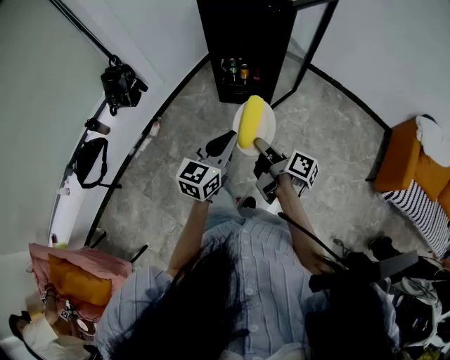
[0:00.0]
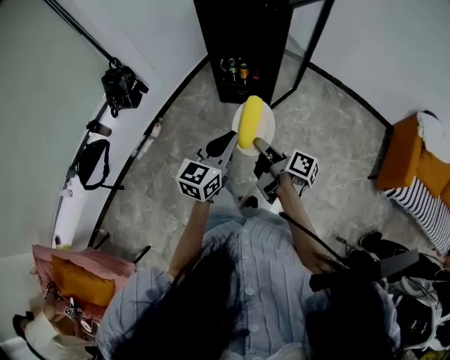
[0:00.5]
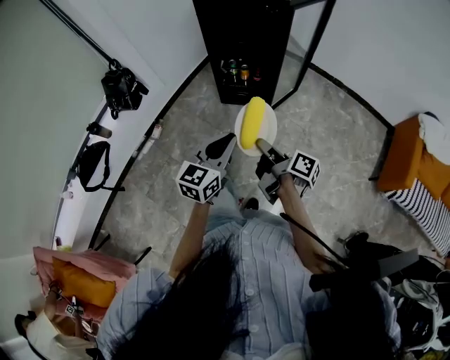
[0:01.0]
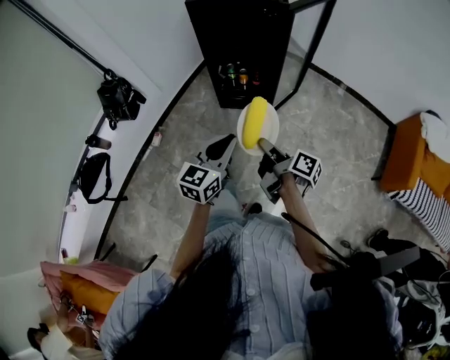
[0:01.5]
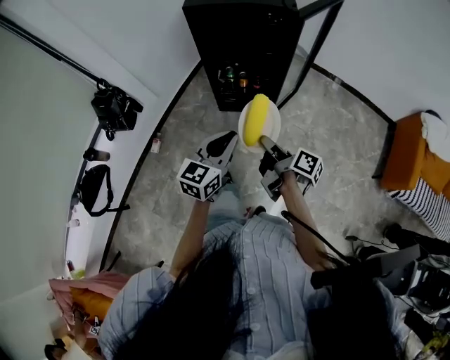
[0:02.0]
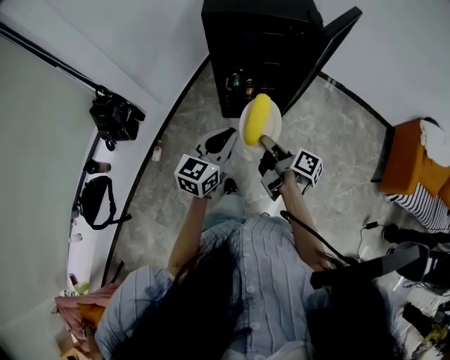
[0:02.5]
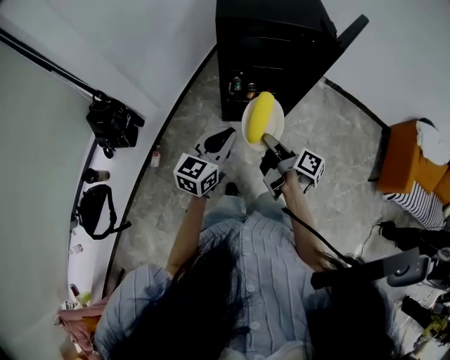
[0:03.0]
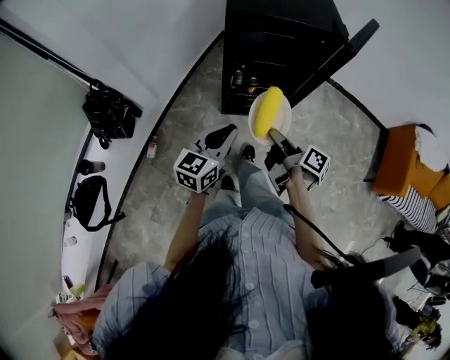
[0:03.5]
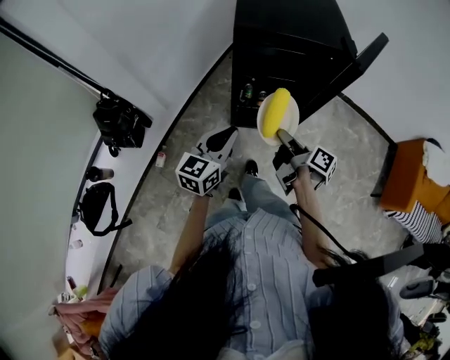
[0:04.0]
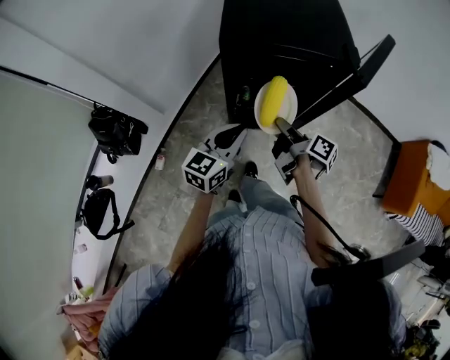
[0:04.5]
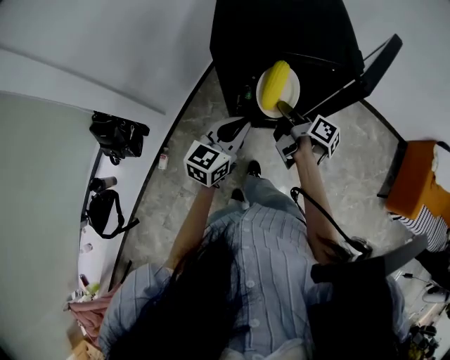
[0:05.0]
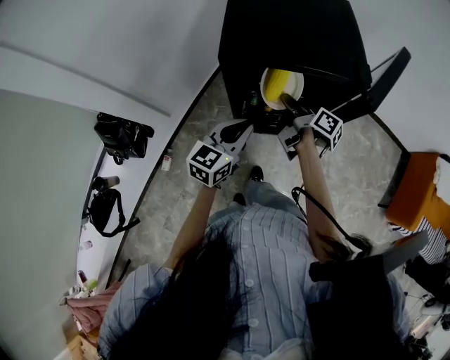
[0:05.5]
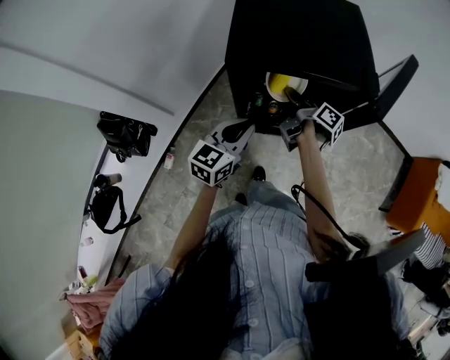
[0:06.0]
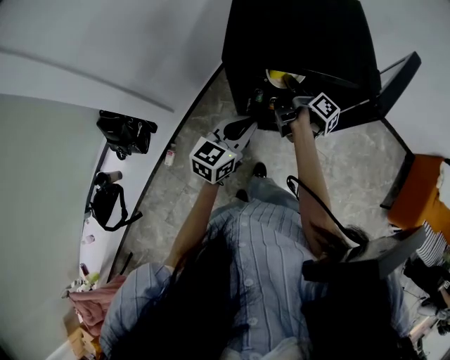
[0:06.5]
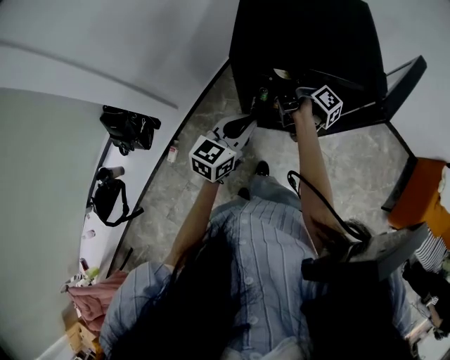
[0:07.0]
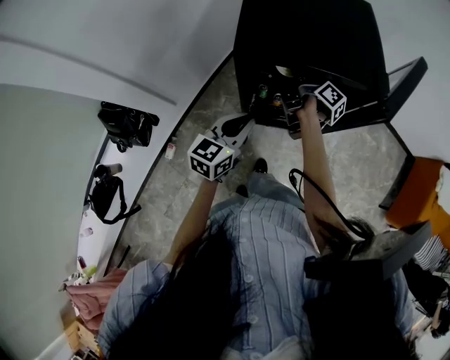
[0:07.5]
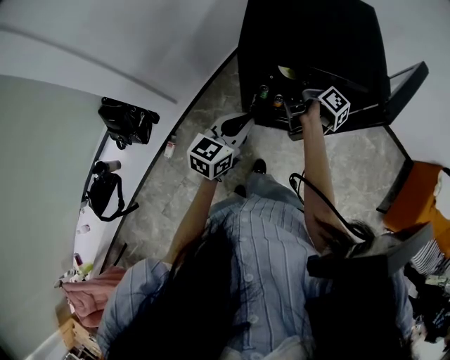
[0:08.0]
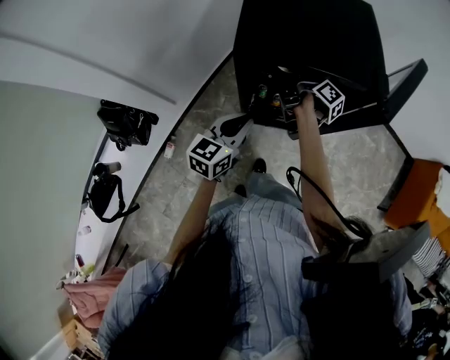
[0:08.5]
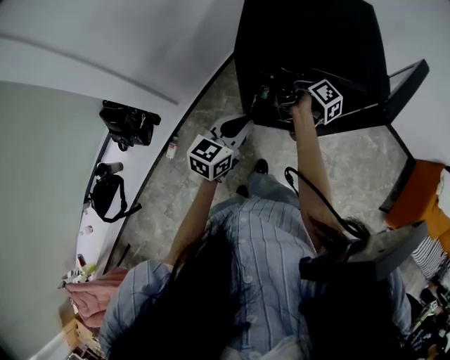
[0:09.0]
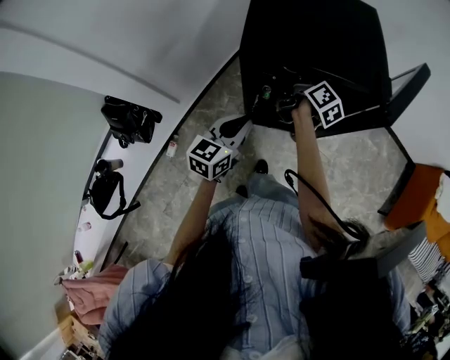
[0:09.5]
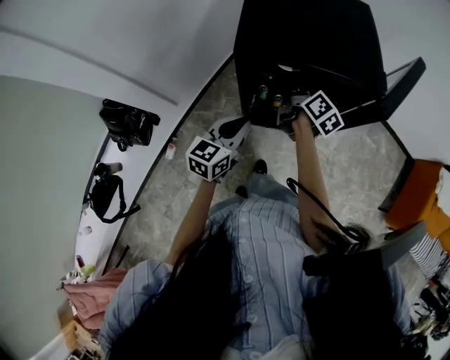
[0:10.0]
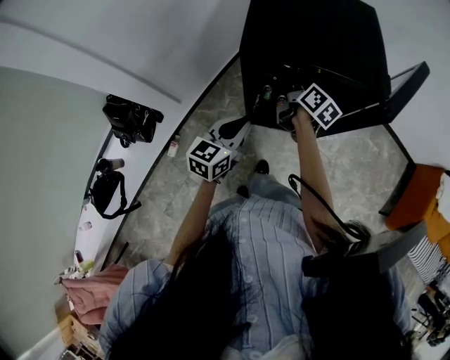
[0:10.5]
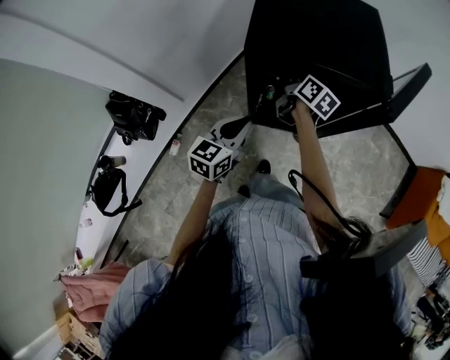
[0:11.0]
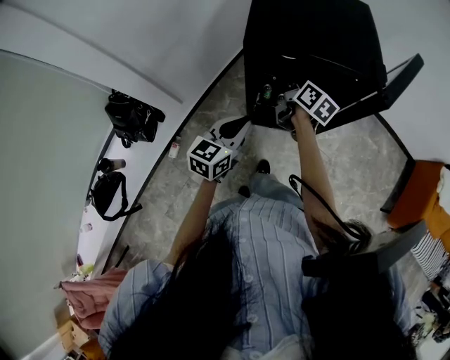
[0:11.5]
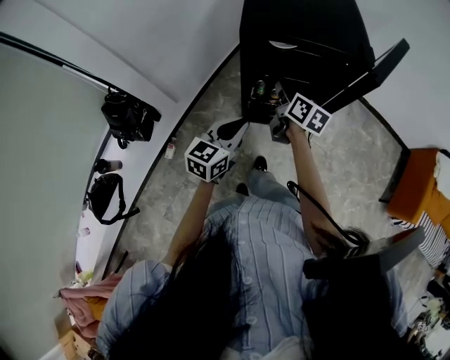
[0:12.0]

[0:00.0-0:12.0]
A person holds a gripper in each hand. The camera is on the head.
0:00.0 to 0:02.0: Both grippers travel together forward, about 15 cm.
0:02.0 to 0:04.0: The right gripper shifts about 20 cm forward and to the left. Meanwhile the left gripper moves to the left and forward, roughly 25 cm.
0:04.0 to 0:06.0: The right gripper moves forward, approximately 25 cm. Meanwhile the left gripper heads forward, covering some 15 cm.
0:06.0 to 0:08.0: The grippers move only a little.
0:08.0 to 0:10.0: The right gripper changes its angle by roughly 30 degrees, and opens, then closes again.
0:10.0 to 0:12.0: The grippers both shift backward by some 10 cm. The right gripper swivels some 20 degrees.

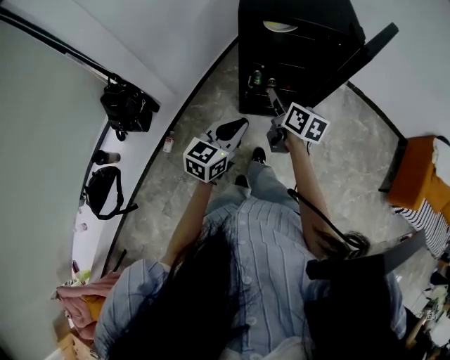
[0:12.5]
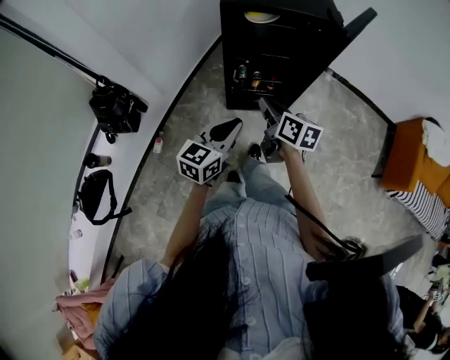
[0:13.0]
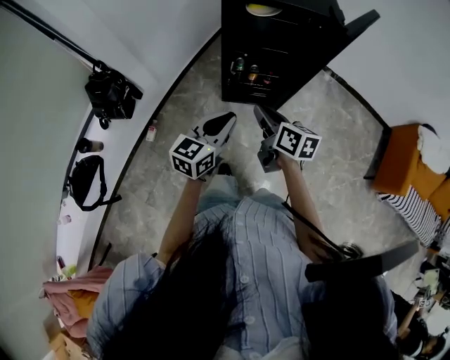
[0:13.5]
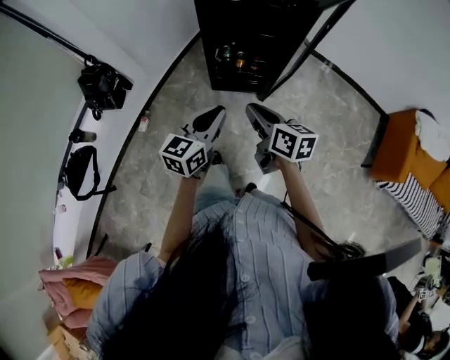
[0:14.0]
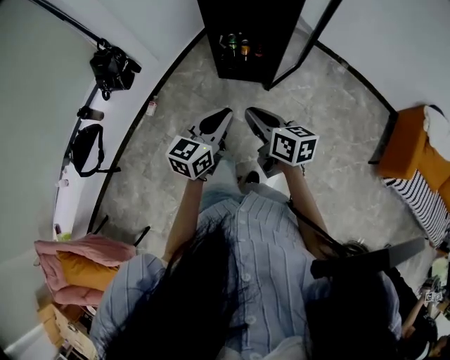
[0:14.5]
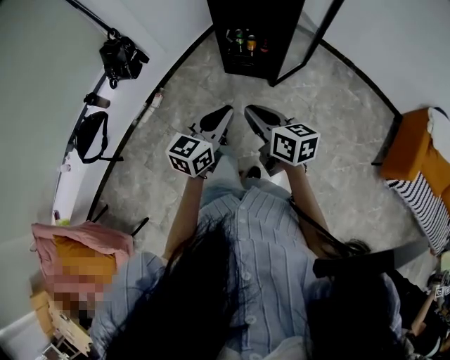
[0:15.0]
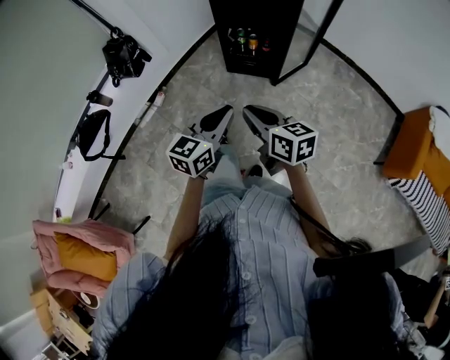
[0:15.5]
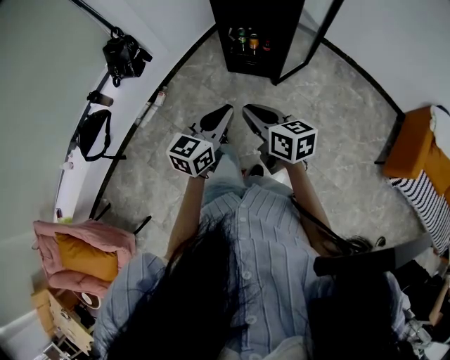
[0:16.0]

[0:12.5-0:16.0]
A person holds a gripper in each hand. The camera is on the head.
0:12.5 to 0:14.5: The two grippers go roughly 30 cm backward and to the right. The right gripper swivels some 20 degrees.
0:14.5 to 0:16.0: The two grippers go approximately 5 cm backward.

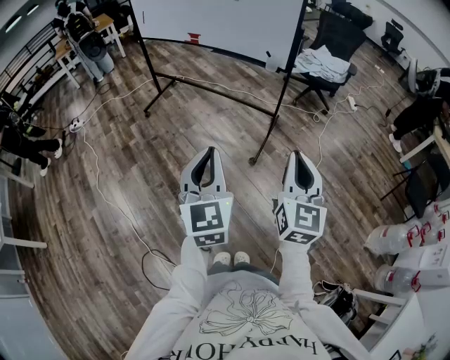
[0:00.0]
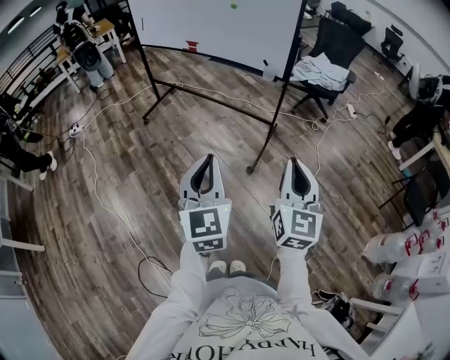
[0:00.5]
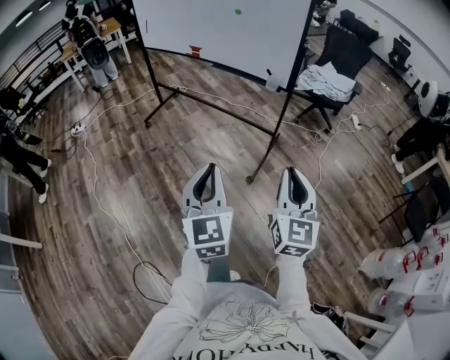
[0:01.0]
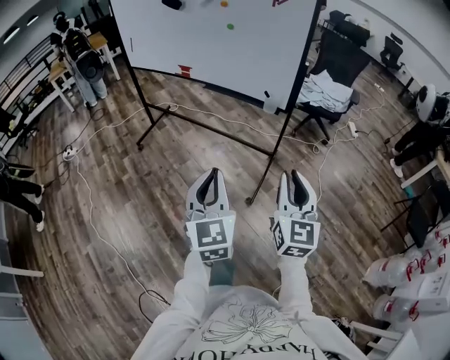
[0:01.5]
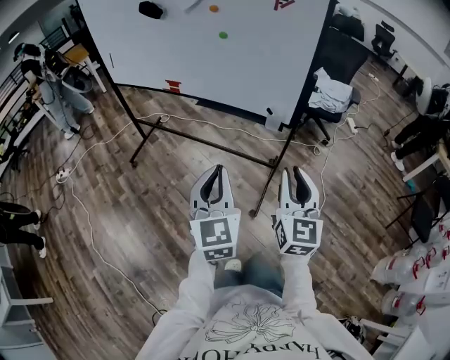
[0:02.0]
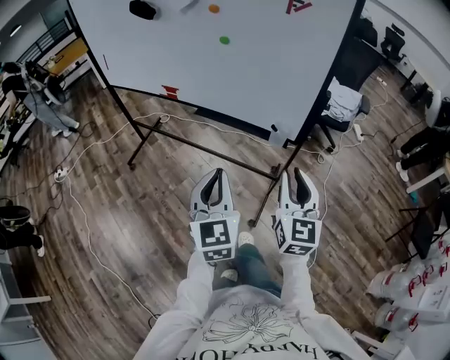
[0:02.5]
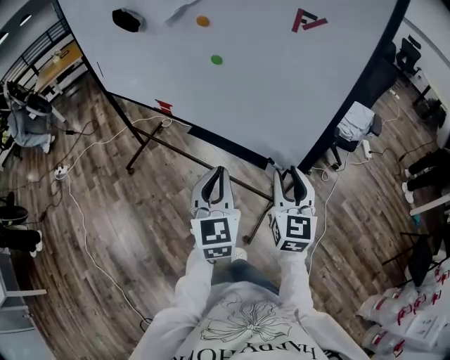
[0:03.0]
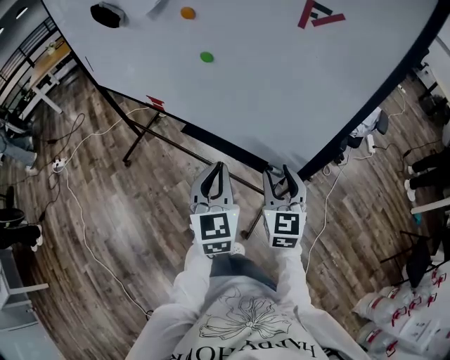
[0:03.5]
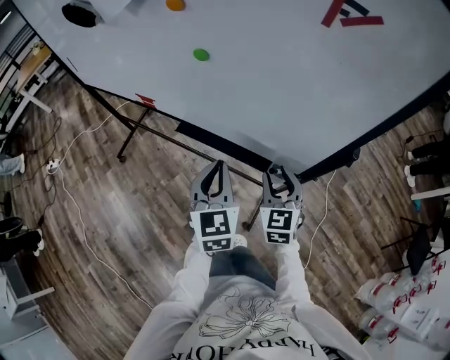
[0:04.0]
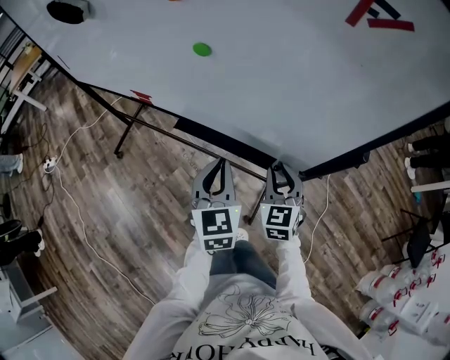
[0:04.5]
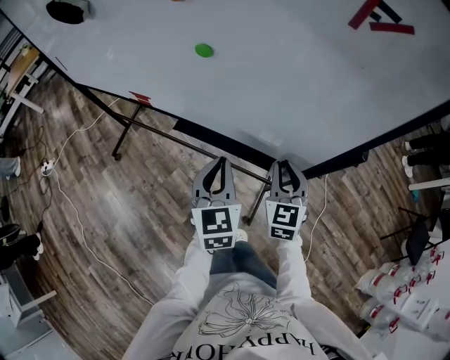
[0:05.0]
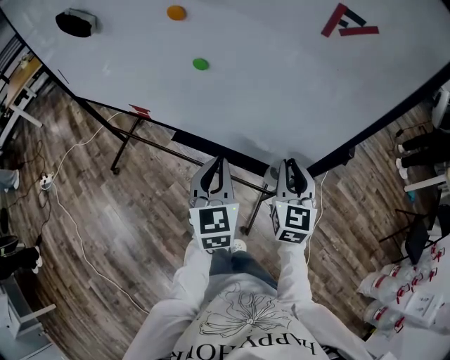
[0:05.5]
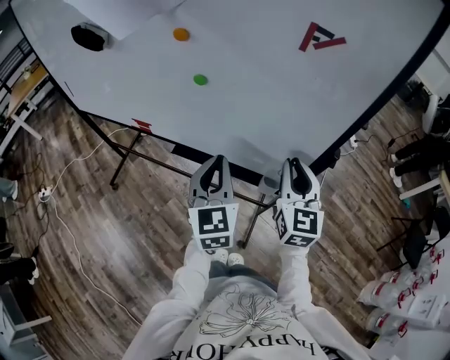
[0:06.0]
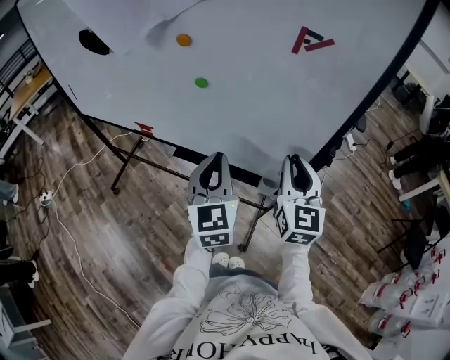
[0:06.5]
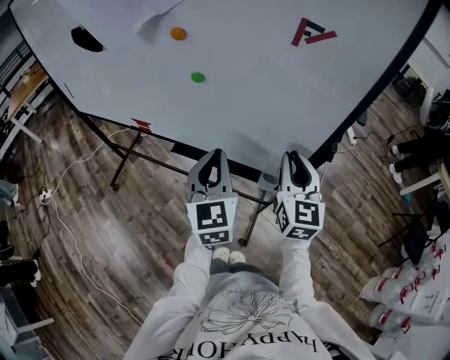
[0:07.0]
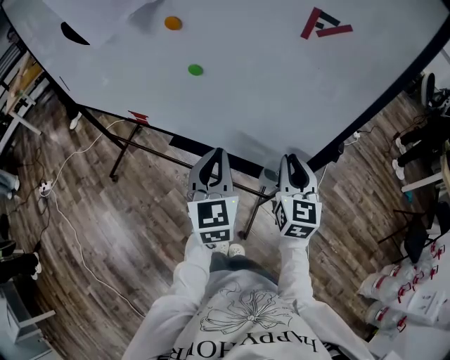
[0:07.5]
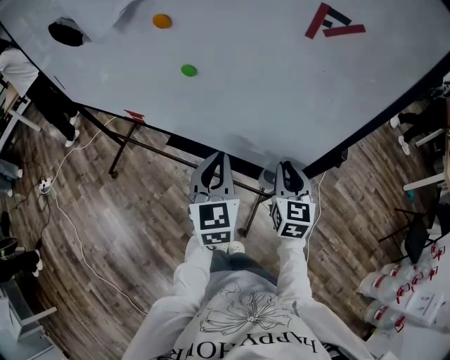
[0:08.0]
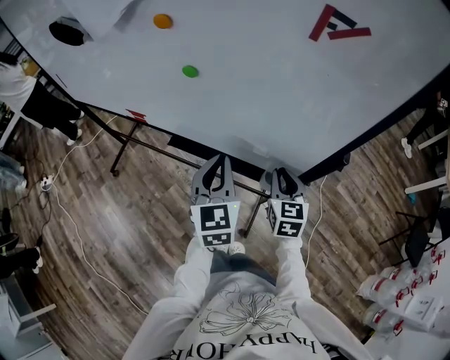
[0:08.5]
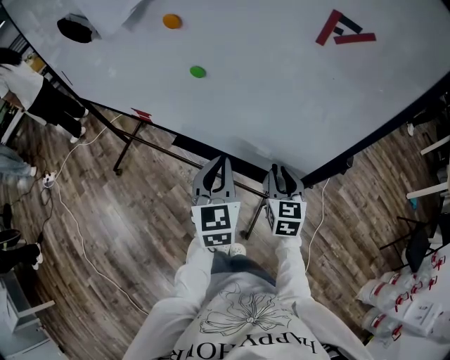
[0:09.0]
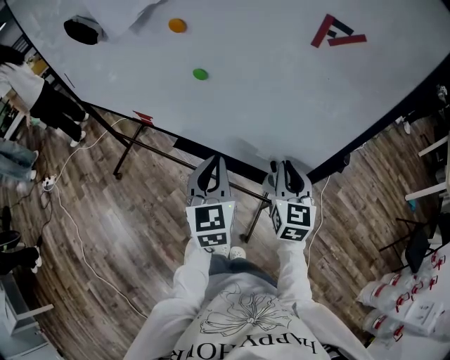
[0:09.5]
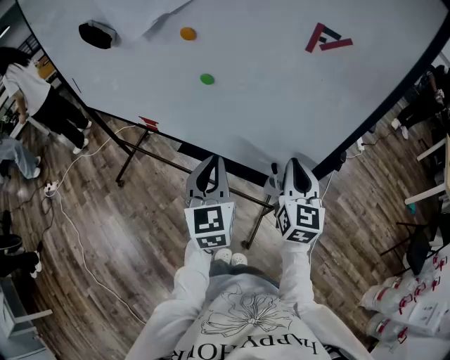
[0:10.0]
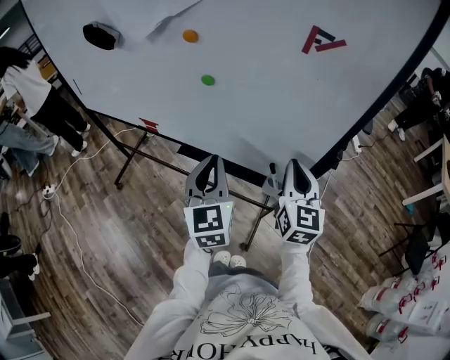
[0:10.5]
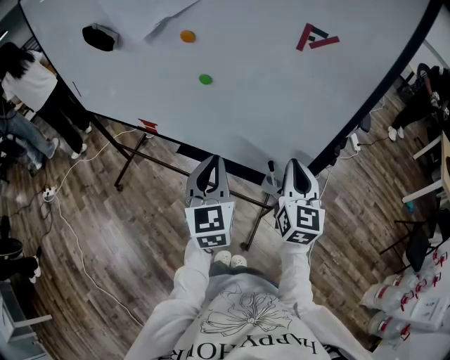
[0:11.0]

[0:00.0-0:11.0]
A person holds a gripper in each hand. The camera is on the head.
0:00.0 to 0:02.0: Both grippers travel together forward, approximately 40 cm.
0:02.0 to 0:03.5: The grippers both shift forward by about 35 cm. The right gripper opens up.
0:03.5 to 0:05.5: The right gripper goes downward and returns, approximately 10 cm each way, and closes up. The left gripper travels forward by roughly 5 cm.
0:05.5 to 0:07.5: The right gripper travels upward and back again, some 10 cm each way.
0:07.5 to 0:09.0: The right gripper heads downward, covering some 10 cm.
0:09.0 to 0:11.0: The left gripper travels upward by approximately 5 cm. Meanwhile the right gripper heads upward, covering approximately 15 cm, rotates some 20 degrees, and closes up.
